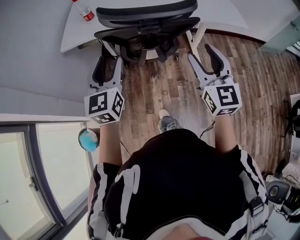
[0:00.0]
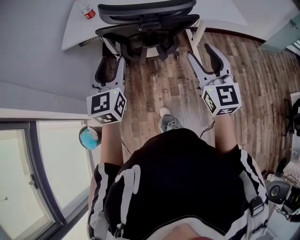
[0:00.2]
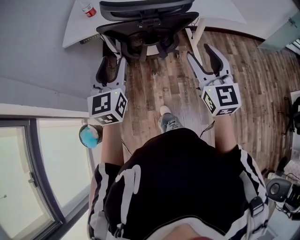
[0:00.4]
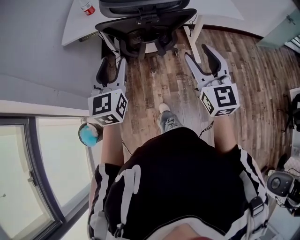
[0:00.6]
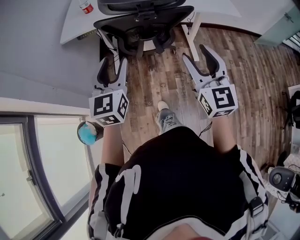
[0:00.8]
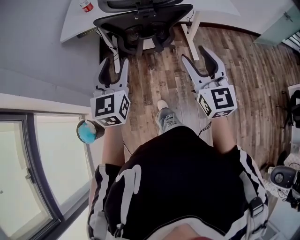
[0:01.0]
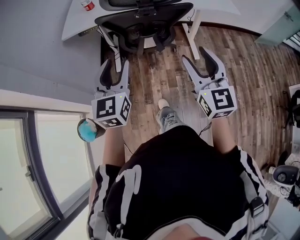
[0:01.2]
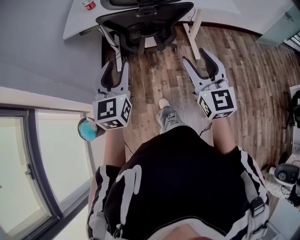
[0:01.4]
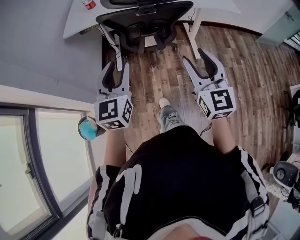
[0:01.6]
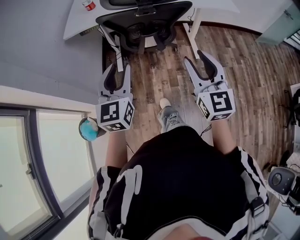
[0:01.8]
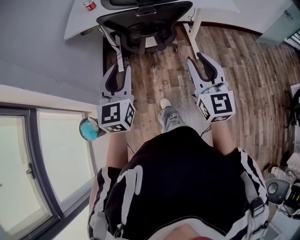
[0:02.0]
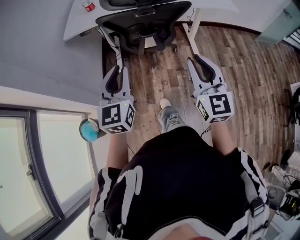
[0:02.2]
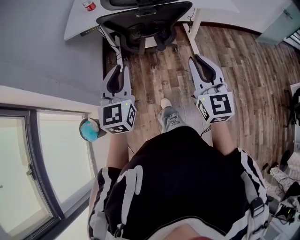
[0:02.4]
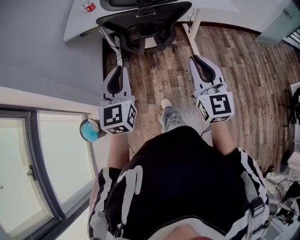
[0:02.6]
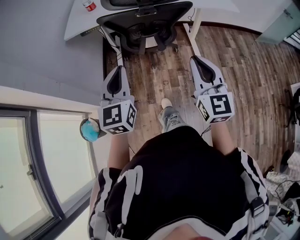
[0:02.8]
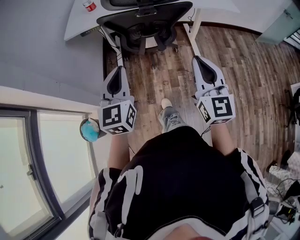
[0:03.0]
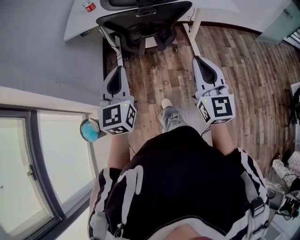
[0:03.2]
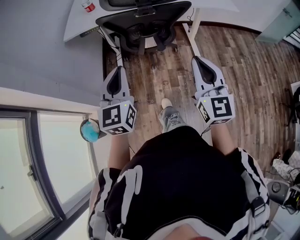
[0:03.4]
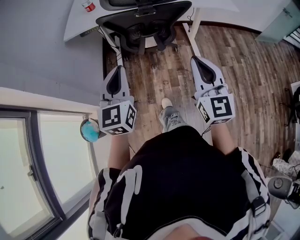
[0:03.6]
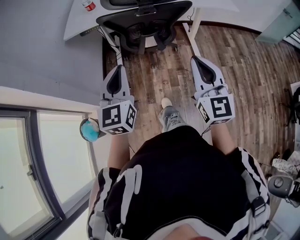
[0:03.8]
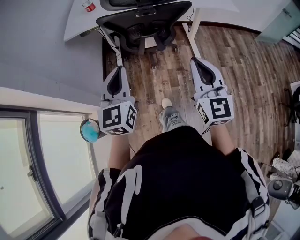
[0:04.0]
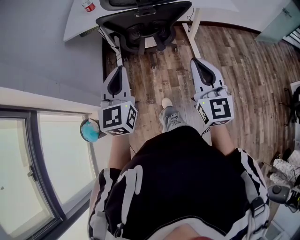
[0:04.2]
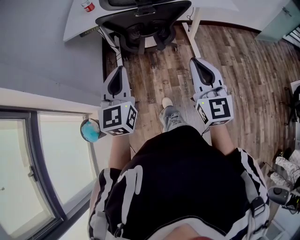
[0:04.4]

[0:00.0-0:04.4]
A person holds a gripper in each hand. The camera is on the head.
0.0 to 1.4 s: The grippers both shift backward by approximately 15 cm.
1.4 to 3.0 s: The right gripper closes up. Meanwhile the left gripper closes.
3.0 to 4.4 s: Both grippers stay about where they are.

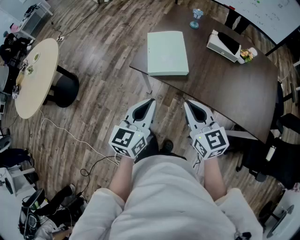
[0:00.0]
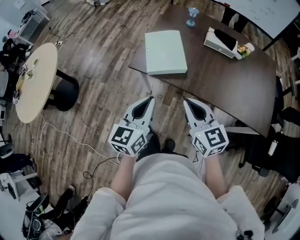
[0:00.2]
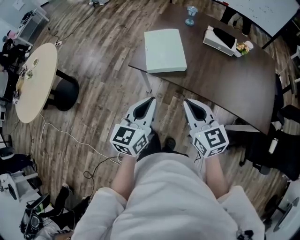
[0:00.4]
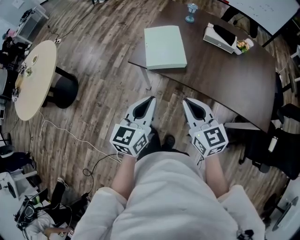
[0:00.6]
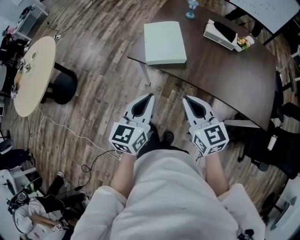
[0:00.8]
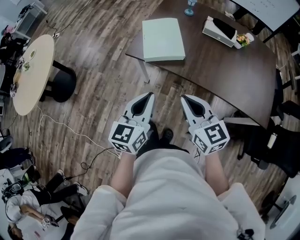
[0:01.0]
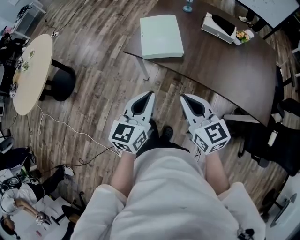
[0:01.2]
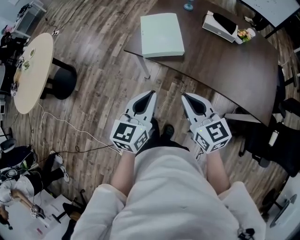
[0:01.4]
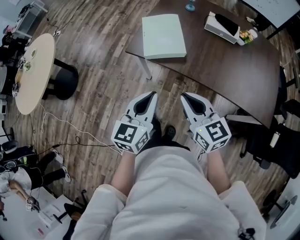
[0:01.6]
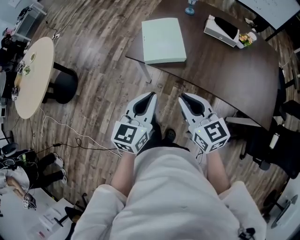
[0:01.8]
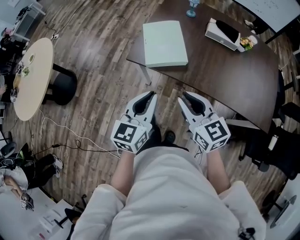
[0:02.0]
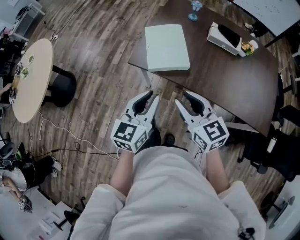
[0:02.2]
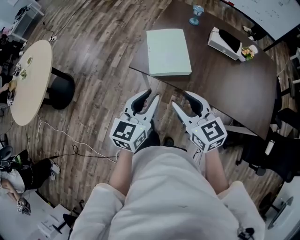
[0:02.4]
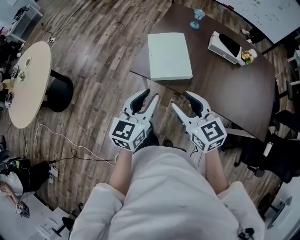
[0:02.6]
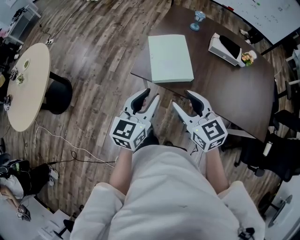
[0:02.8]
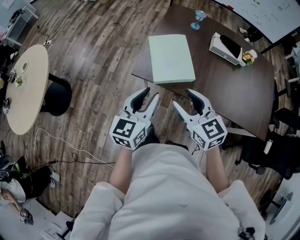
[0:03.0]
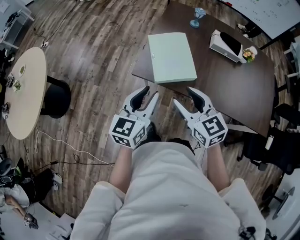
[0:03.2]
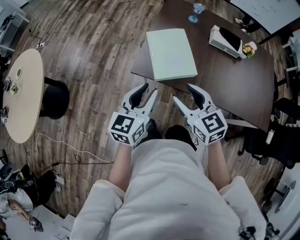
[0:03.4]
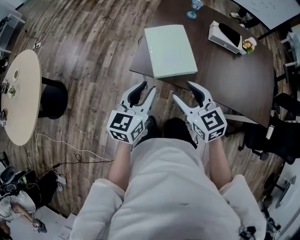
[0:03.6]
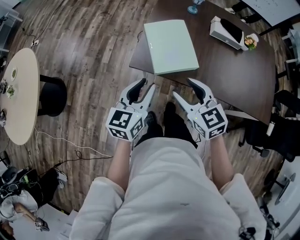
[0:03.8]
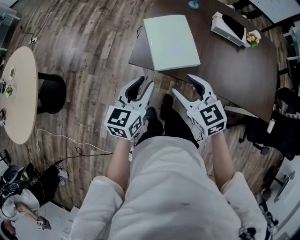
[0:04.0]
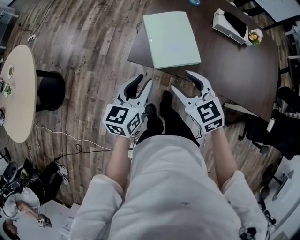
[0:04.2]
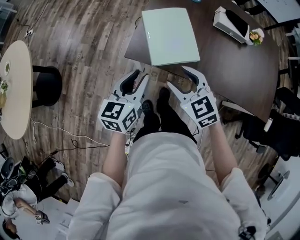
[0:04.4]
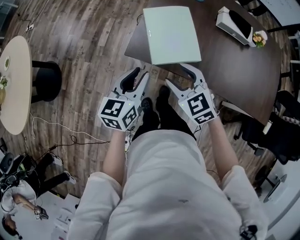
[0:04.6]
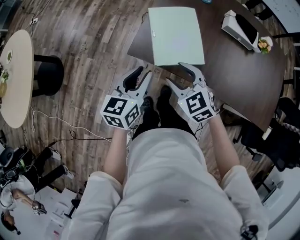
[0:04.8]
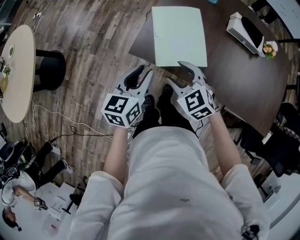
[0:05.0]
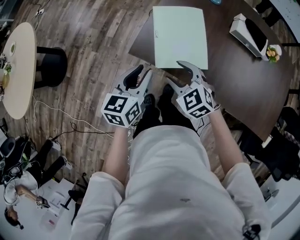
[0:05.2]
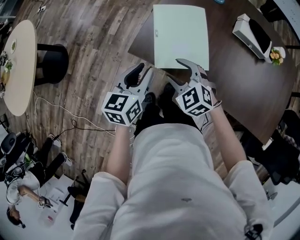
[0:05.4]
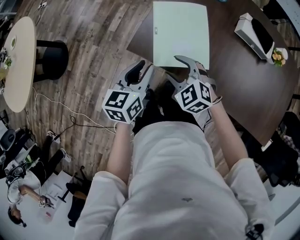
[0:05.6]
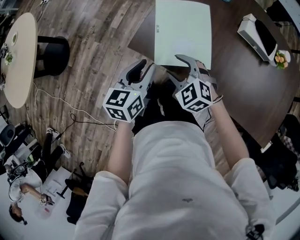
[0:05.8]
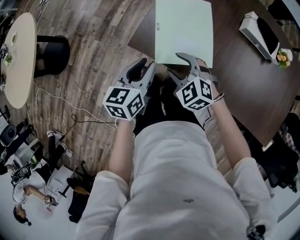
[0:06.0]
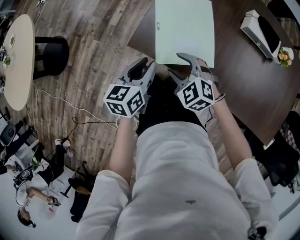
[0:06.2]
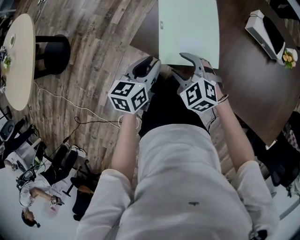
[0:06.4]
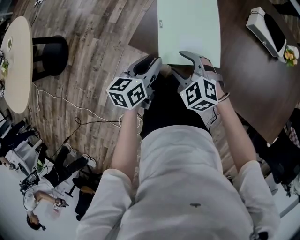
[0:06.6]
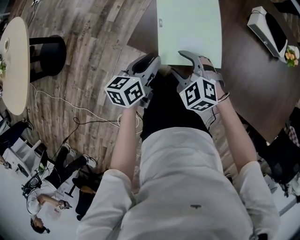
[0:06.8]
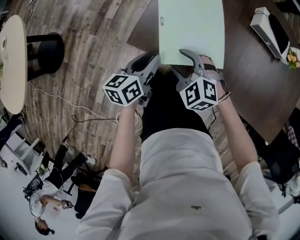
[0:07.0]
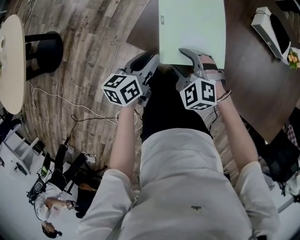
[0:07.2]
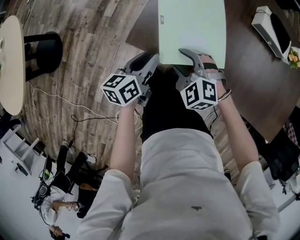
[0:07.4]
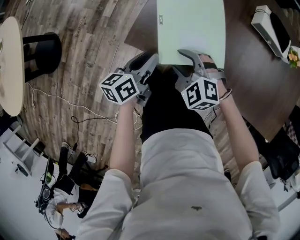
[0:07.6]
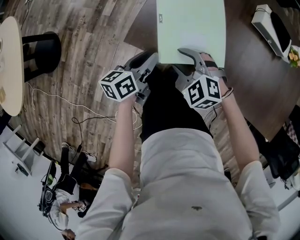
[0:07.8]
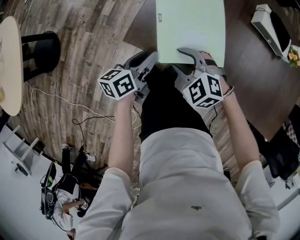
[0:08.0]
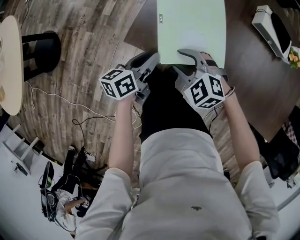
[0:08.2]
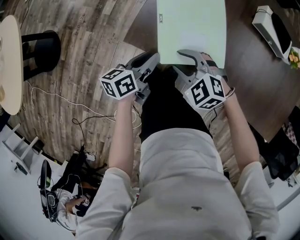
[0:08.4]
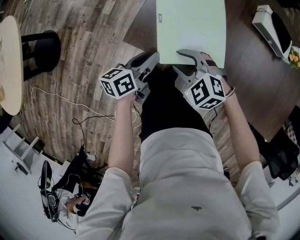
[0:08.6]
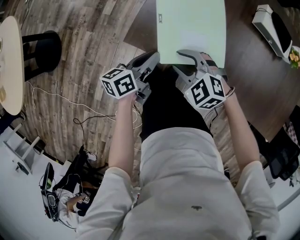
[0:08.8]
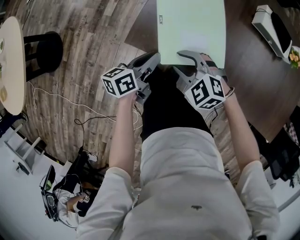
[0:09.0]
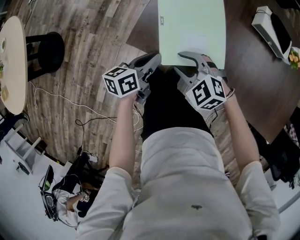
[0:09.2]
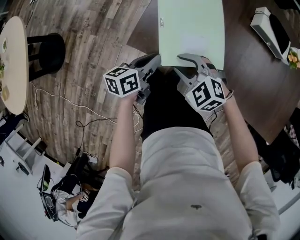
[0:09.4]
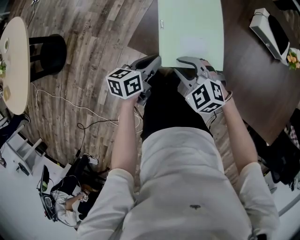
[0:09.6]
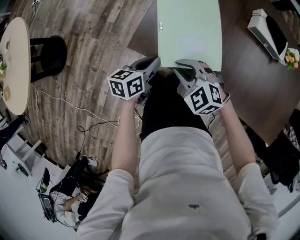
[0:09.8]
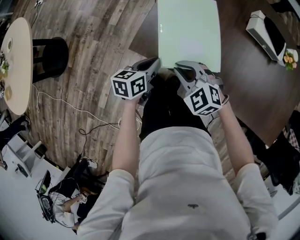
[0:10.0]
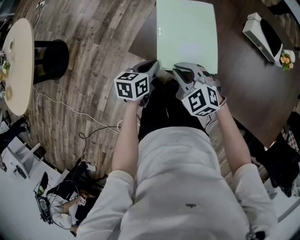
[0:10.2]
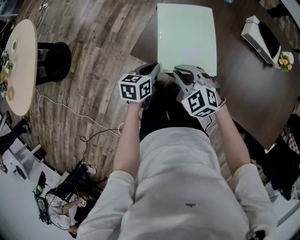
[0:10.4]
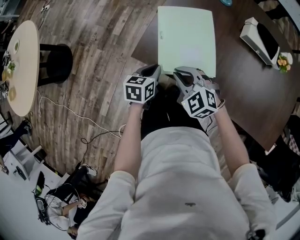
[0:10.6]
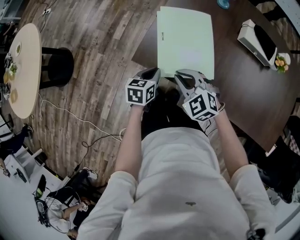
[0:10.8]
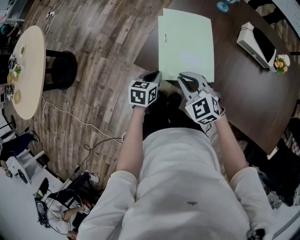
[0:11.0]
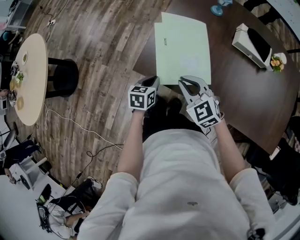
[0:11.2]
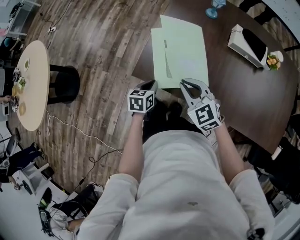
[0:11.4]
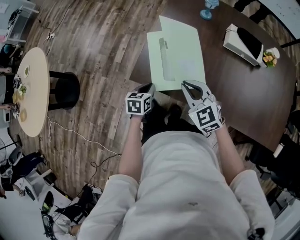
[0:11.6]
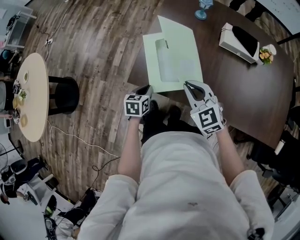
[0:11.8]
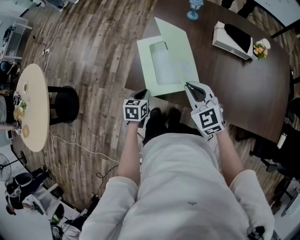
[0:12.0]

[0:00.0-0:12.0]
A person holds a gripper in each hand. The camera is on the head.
0.0 to 1.6 s: The left gripper changes place by roughly 5 cm.
1.6 to 3.0 s: Both grippers travel together forward and to the left, some 15 cm. The right gripper opens; the left gripper opens up.
3.0 to 4.4 s: Both grippers move downward and forward, some 10 cm.
4.4 to 6.0 s: The right gripper travels downward and forward by approximately 15 cm, and swivels roughly 30 degrees. The left gripper travels downward and forward by approximately 10 cm.
6.0 to 7.6 s: The left gripper heads downward, covering roughly 10 cm, and turns by approximately 20 degrees. Meanwhile the right gripper heads downward, covering approximately 5 cm.
7.6 to 9.0 s: The grippers make only small movements.
9.0 to 10.4 s: The right gripper closes; the left gripper turns by about 30 degrees.
10.4 to 12.0 s: The right gripper is displaced to the right and upward by approximately 15 cm, and turns by some 30 degrees.

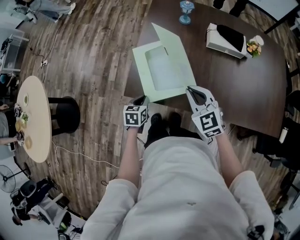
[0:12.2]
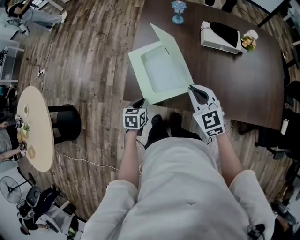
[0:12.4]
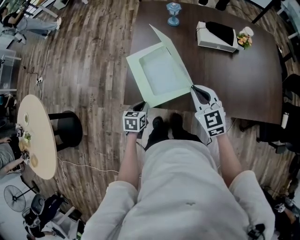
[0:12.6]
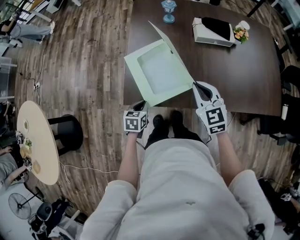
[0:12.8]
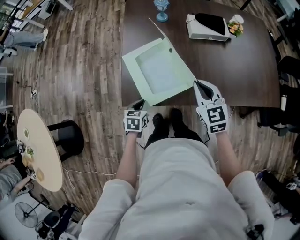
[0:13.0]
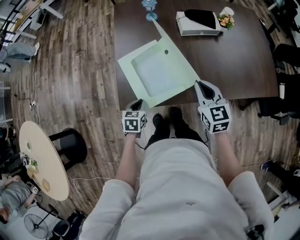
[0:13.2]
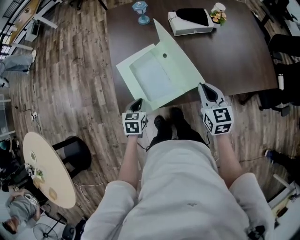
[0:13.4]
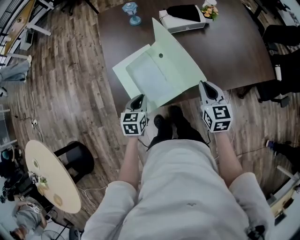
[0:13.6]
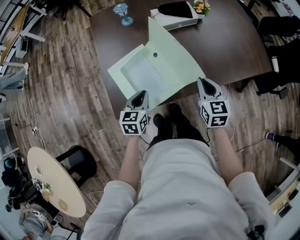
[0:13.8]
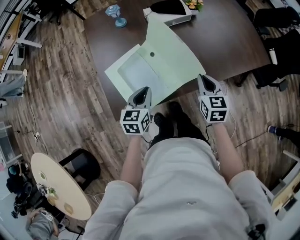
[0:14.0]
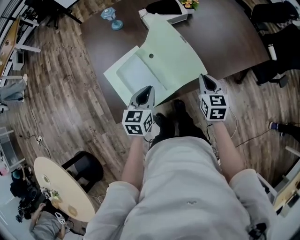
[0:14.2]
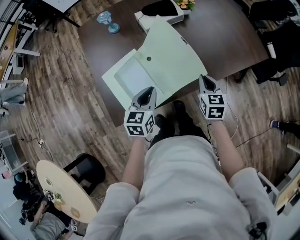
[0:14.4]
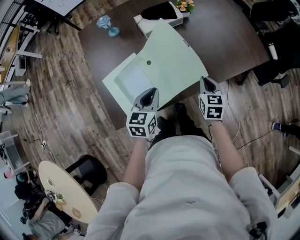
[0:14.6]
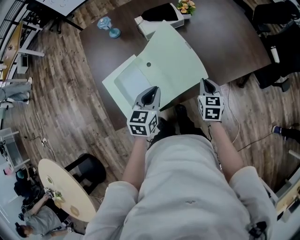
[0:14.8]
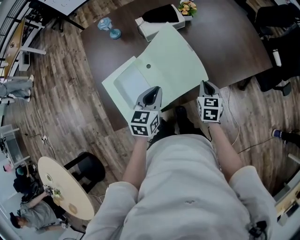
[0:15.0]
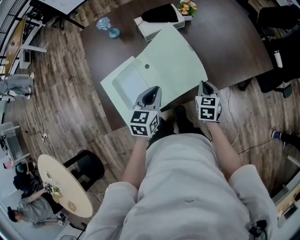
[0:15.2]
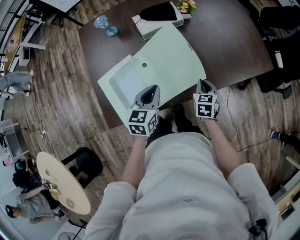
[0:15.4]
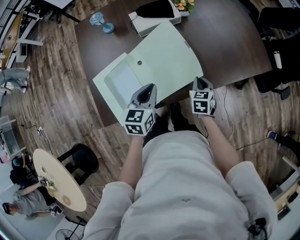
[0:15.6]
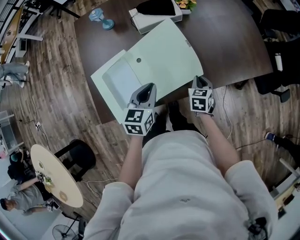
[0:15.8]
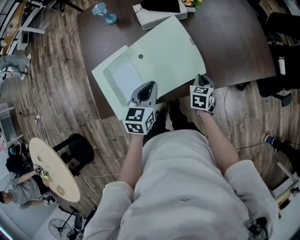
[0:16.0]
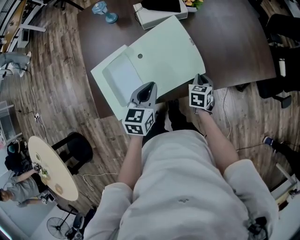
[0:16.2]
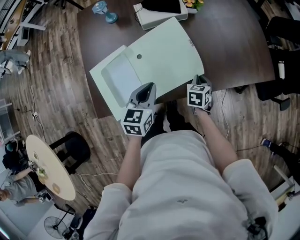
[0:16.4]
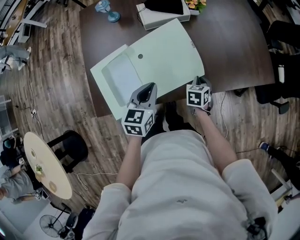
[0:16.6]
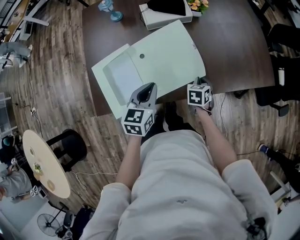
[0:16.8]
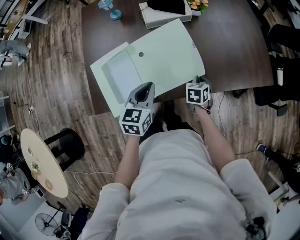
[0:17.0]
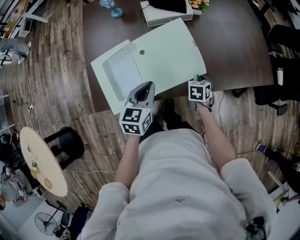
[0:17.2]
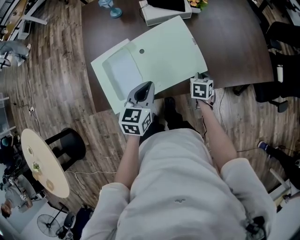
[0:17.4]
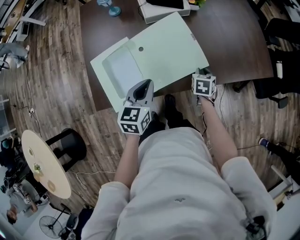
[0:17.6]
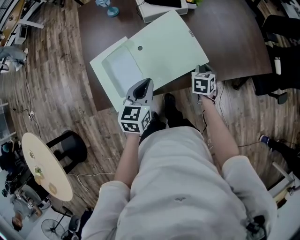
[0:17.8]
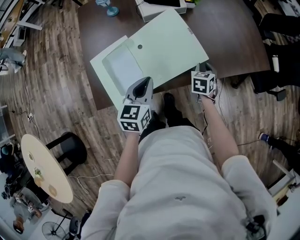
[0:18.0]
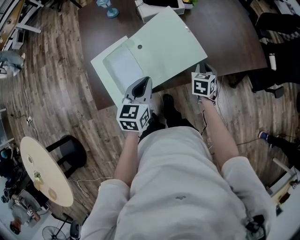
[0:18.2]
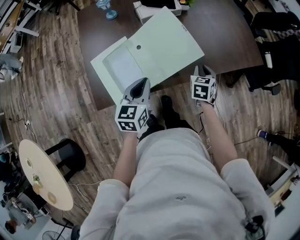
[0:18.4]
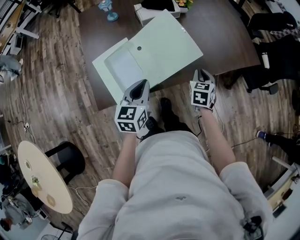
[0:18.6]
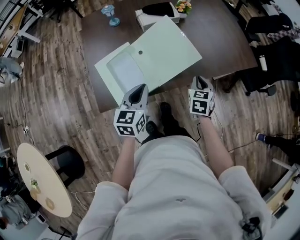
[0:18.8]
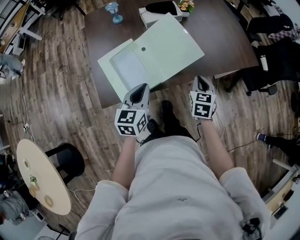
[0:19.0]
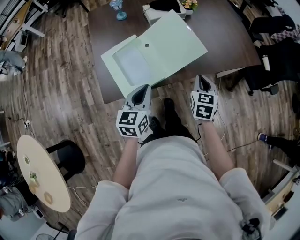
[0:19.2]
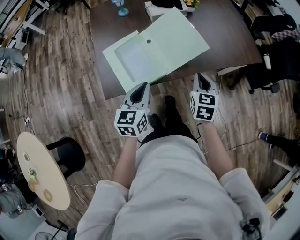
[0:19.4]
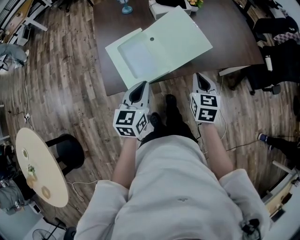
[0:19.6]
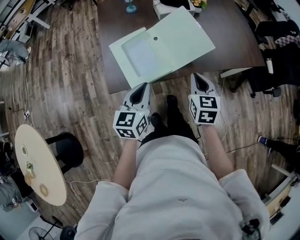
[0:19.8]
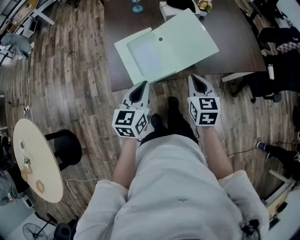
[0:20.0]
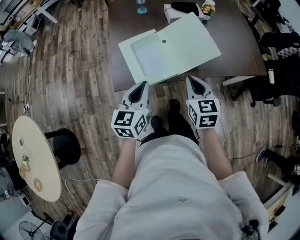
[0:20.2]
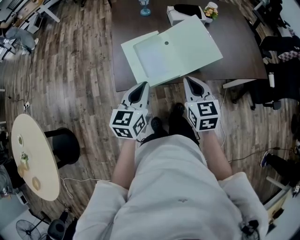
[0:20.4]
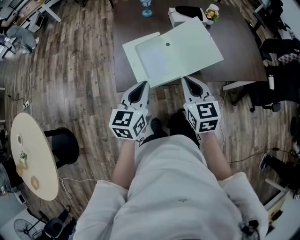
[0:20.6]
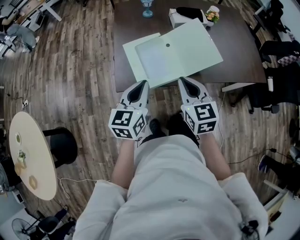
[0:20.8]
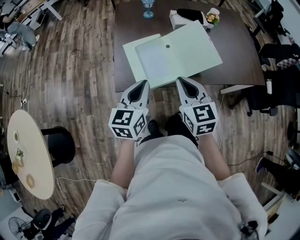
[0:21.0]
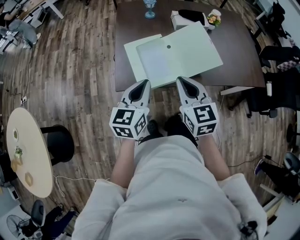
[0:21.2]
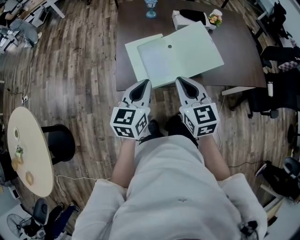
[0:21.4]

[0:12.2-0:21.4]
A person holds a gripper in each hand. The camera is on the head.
12.2 to 13.8 s: The left gripper changes place by some 15 cm, and rotates roughly 30 degrees; the right gripper moves some 15 cm, and rotates about 60 degrees.
13.8 to 15.2 s: The left gripper travels to the right and forward by roughly 15 cm. Meanwhile the right gripper goes some 15 cm to the right, downward and forward.
15.2 to 16.8 s: The right gripper goes approximately 10 cm downward.
16.8 to 18.4 s: The right gripper travels upward by approximately 10 cm. Meanwhile the left gripper goes approximately 5 cm backward.
18.4 to 19.8 s: The left gripper travels backward by roughly 10 cm. The right gripper shifts some 20 cm backward, upward and to the left, and turns by roughly 20 degrees.
19.8 to 21.4 s: The right gripper goes about 15 cm to the left and upward, and turns by approximately 30 degrees, while the left gripper goes approximately 5 cm upward.
